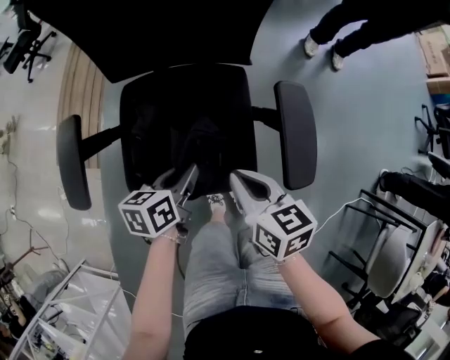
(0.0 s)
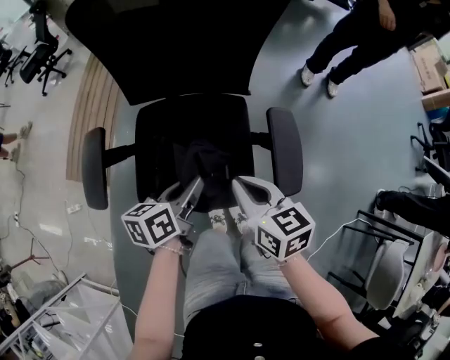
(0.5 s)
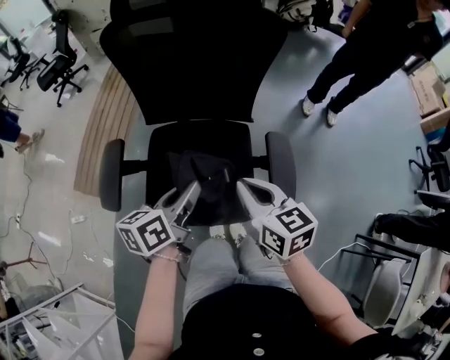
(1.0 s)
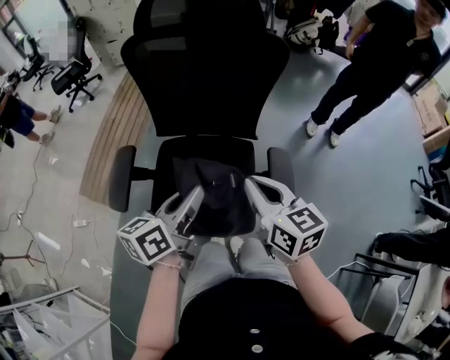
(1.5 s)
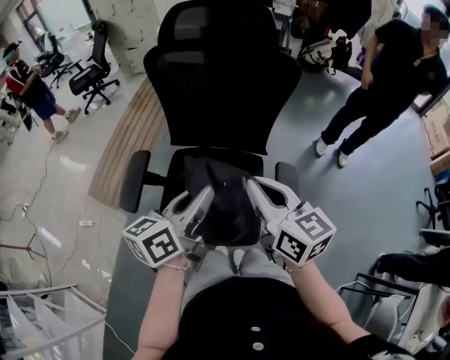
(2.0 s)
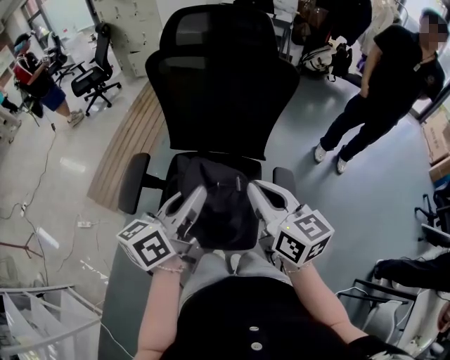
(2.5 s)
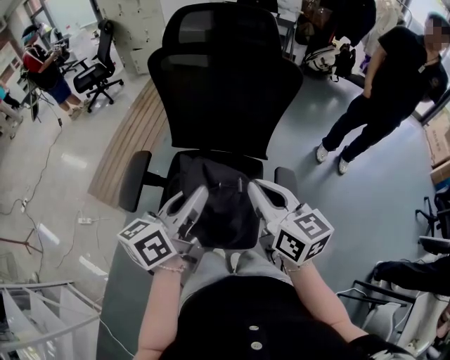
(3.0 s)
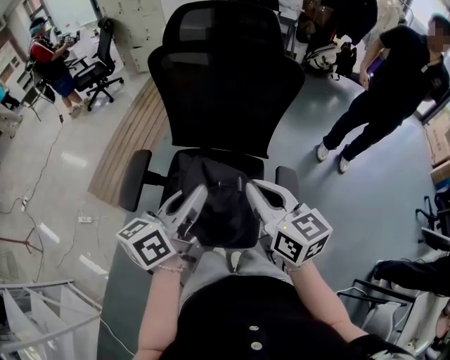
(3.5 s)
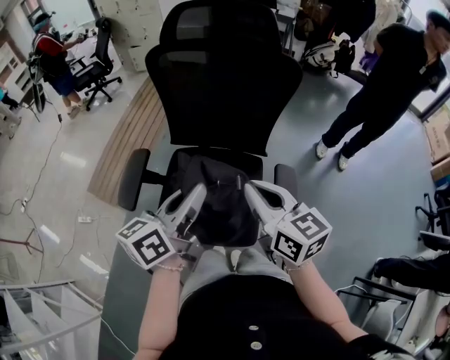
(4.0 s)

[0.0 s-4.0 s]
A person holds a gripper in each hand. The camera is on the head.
0.0 to 2.0 s: Both grippers travel together upward, approximately 30 cm. The right gripper changes its angle by approximately 30 degrees, while the left gripper swivels some 30 degrees.
2.0 to 4.0 s: The grippers move only a little.

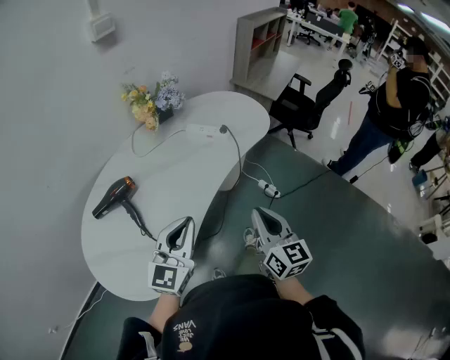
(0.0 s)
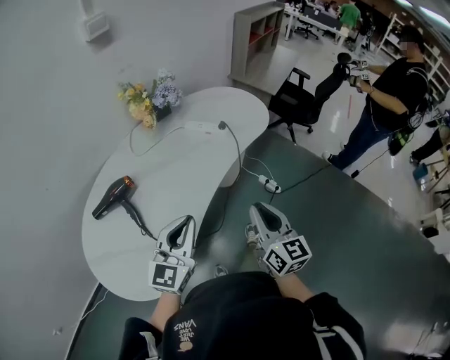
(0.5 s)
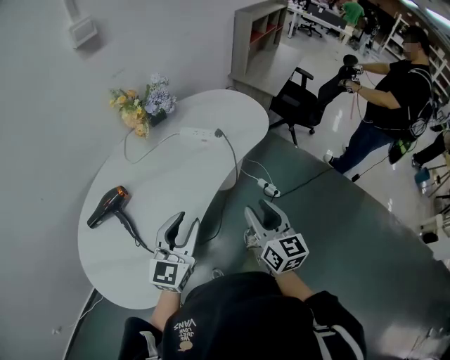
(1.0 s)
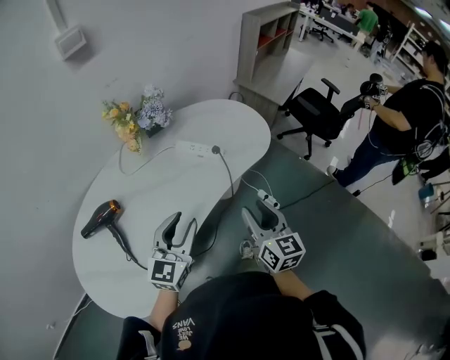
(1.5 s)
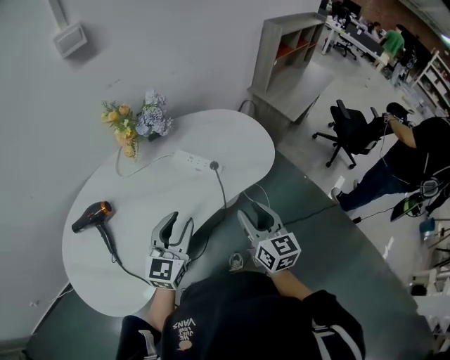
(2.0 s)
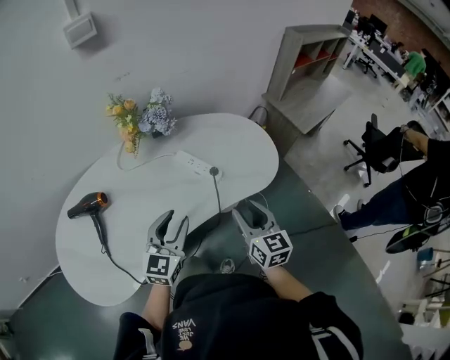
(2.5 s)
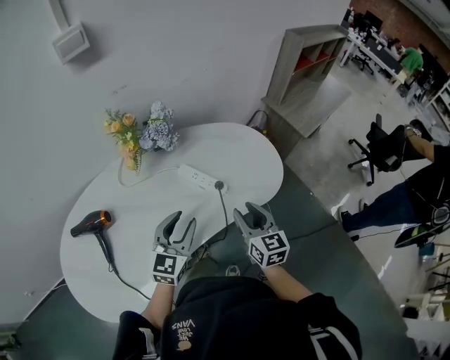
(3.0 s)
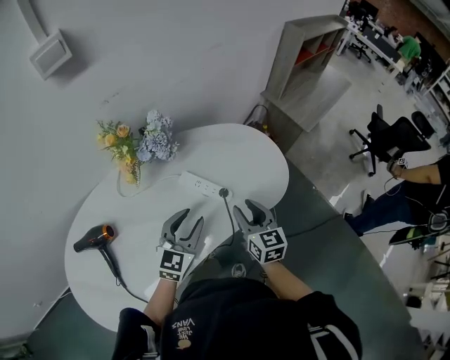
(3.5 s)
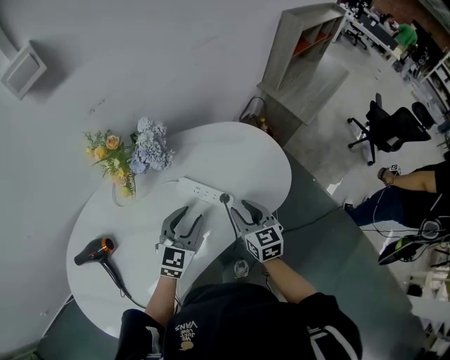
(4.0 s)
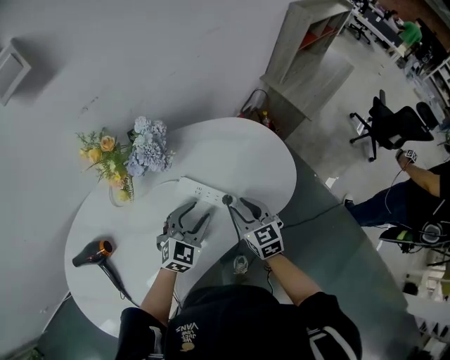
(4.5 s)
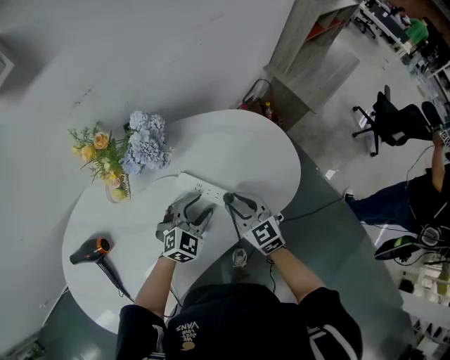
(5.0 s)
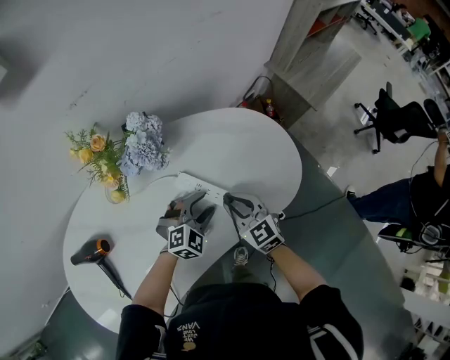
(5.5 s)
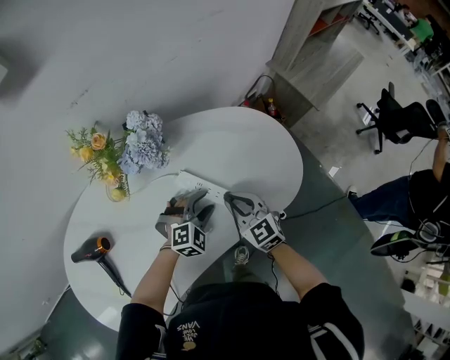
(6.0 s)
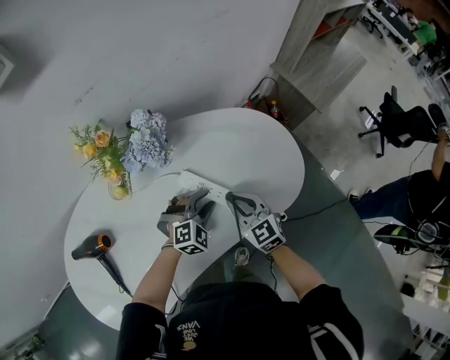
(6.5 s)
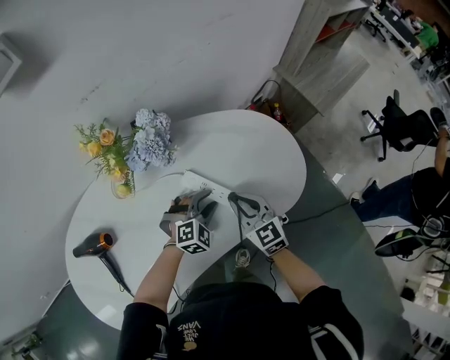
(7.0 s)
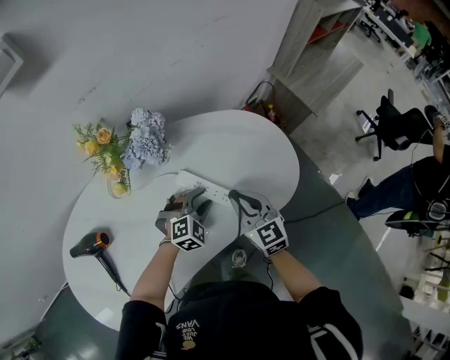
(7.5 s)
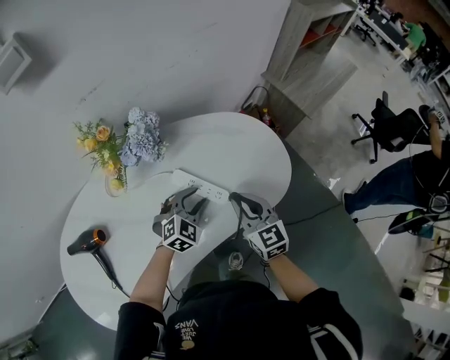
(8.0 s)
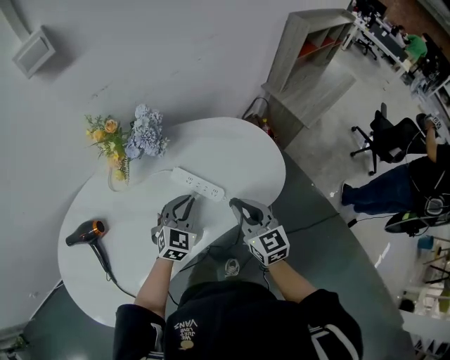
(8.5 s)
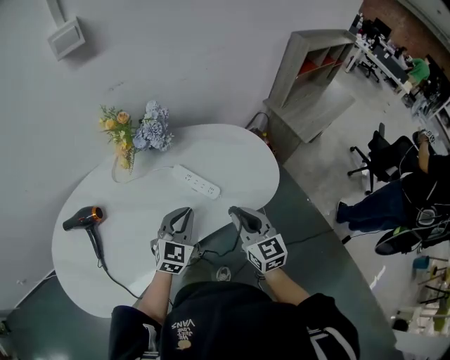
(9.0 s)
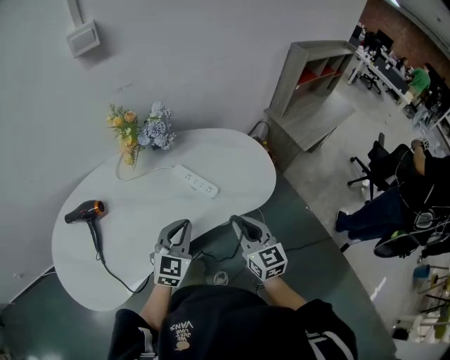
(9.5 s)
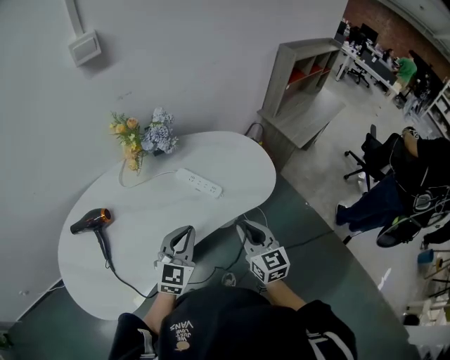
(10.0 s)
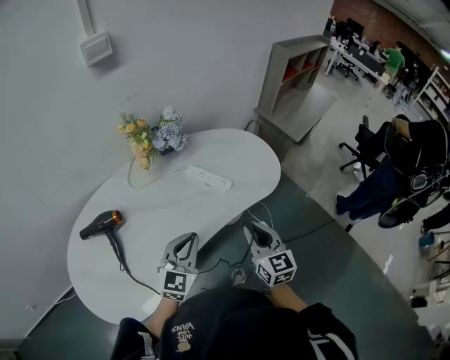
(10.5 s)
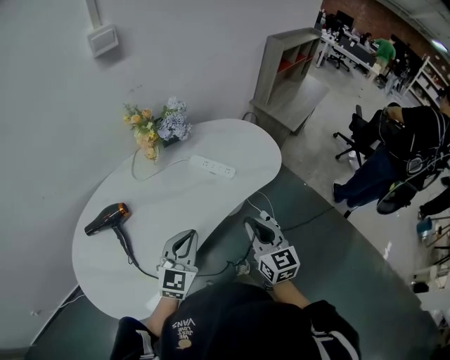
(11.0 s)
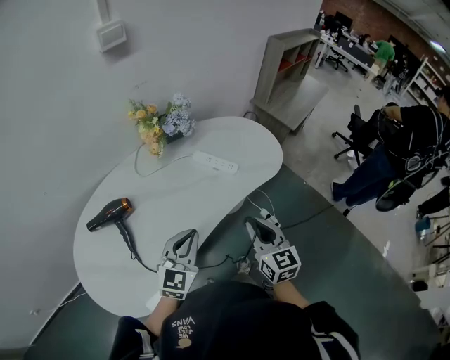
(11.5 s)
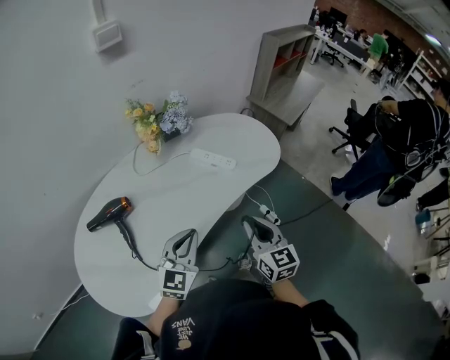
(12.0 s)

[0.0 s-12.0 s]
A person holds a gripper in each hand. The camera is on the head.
0.0 to 2.0 s: The left gripper travels forward and to the right by approximately 25 cm, and opens up. The right gripper travels forward by approximately 25 cm, and opens.
2.0 to 4.0 s: The grippers both shift forward and downward by some 20 cm.
4.0 to 6.0 s: The left gripper is displaced downward by roughly 10 cm, and swivels some 40 degrees. The right gripper ends up roughly 5 cm from where it was, turns by approximately 30 degrees, and closes.
6.0 to 8.0 s: The right gripper heads upward and to the right, covering about 10 cm.
8.0 to 10.0 s: The right gripper travels backward by some 20 cm. Meanwhile the left gripper travels backward and upward by some 25 cm, swivels roughly 40 degrees, and closes.
10.0 to 12.0 s: The two grippers go approximately 15 cm backward and to the left.

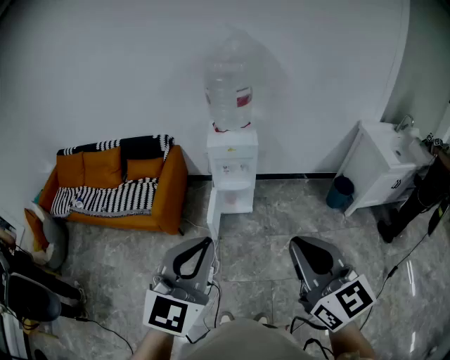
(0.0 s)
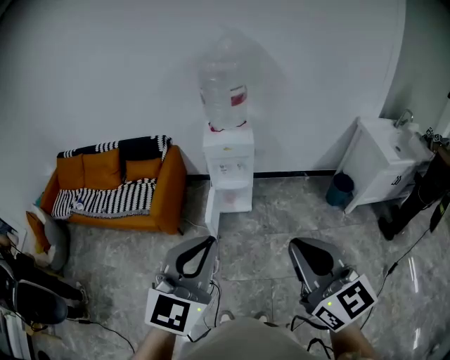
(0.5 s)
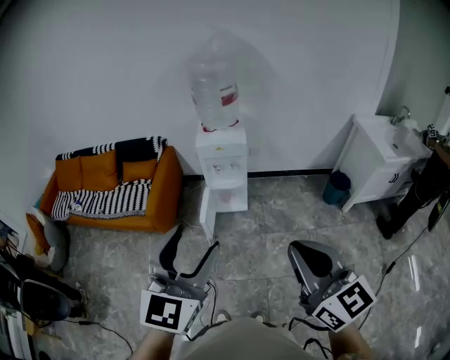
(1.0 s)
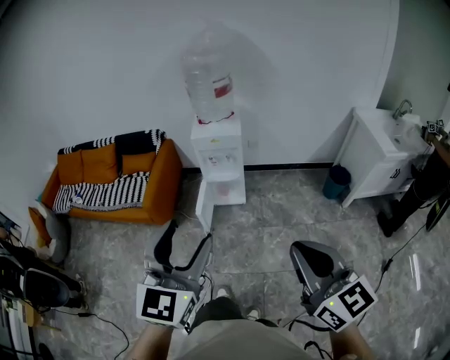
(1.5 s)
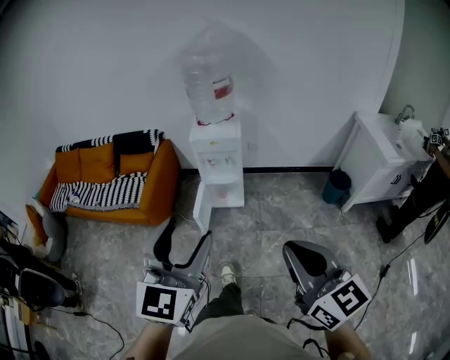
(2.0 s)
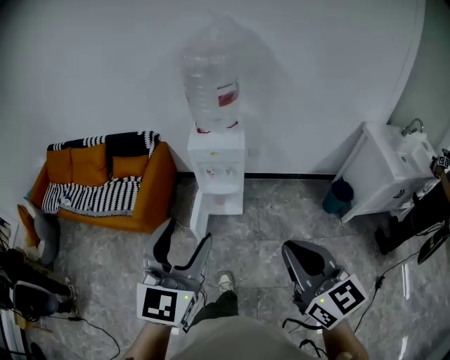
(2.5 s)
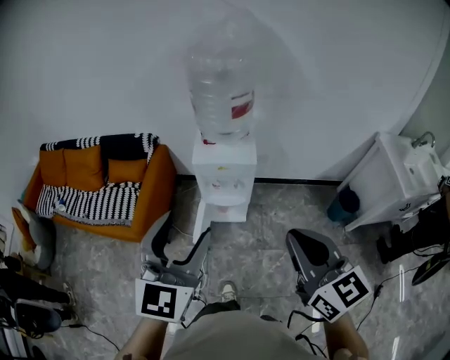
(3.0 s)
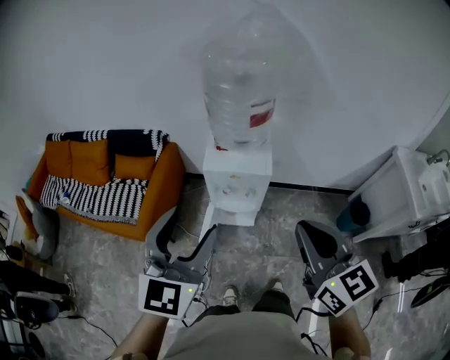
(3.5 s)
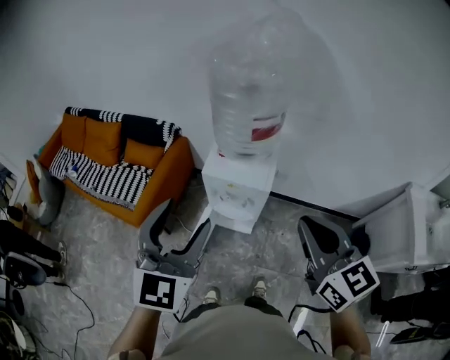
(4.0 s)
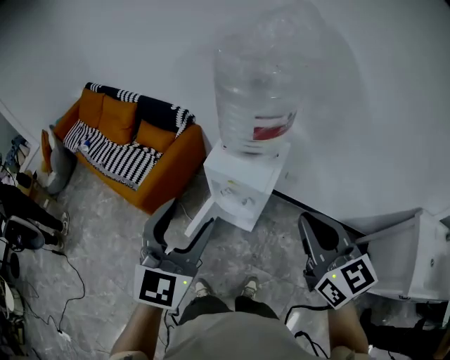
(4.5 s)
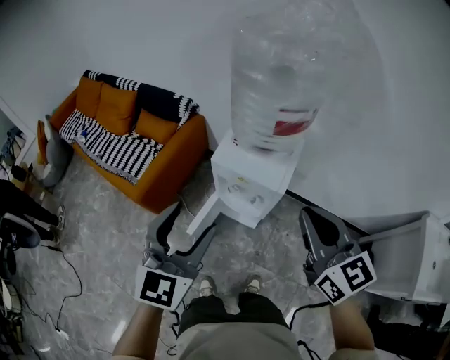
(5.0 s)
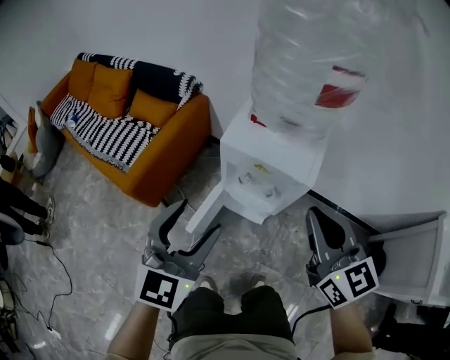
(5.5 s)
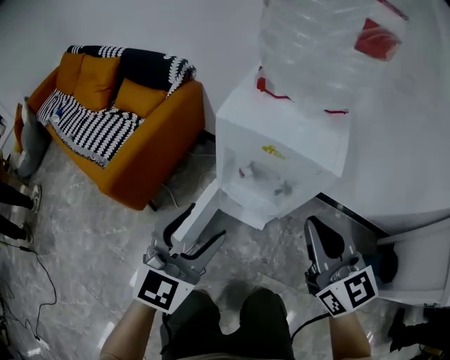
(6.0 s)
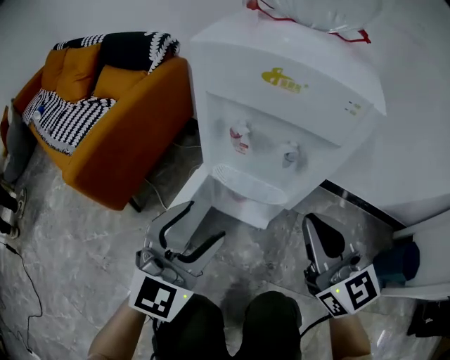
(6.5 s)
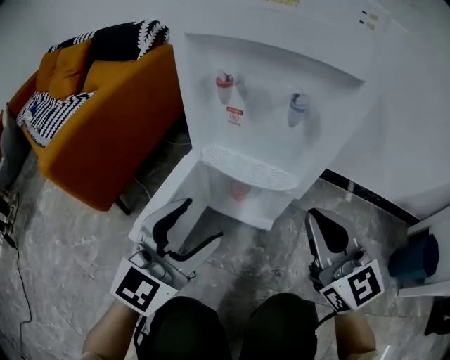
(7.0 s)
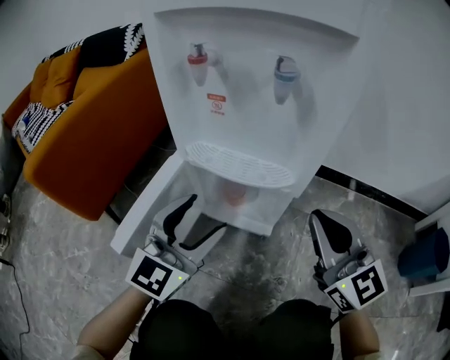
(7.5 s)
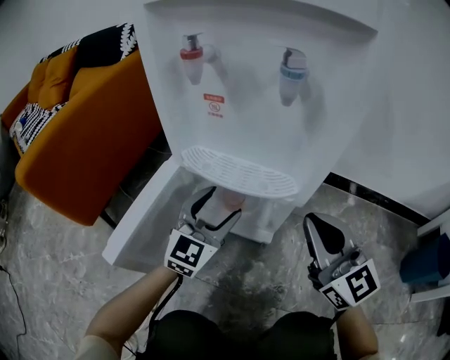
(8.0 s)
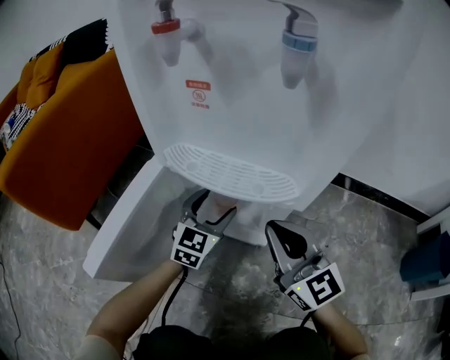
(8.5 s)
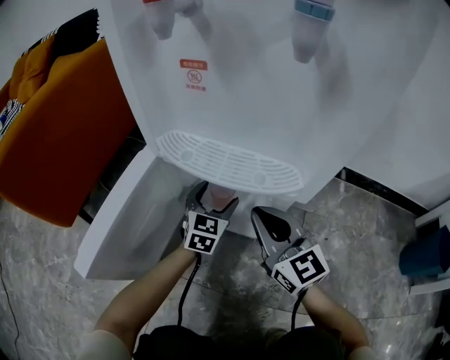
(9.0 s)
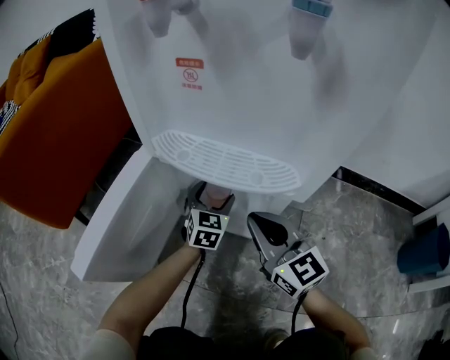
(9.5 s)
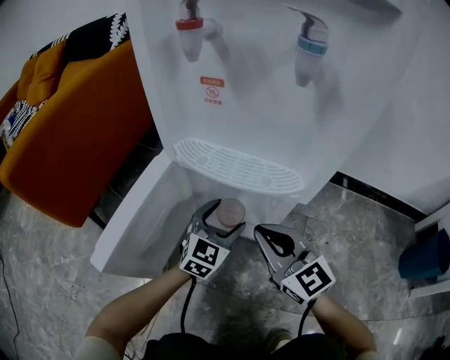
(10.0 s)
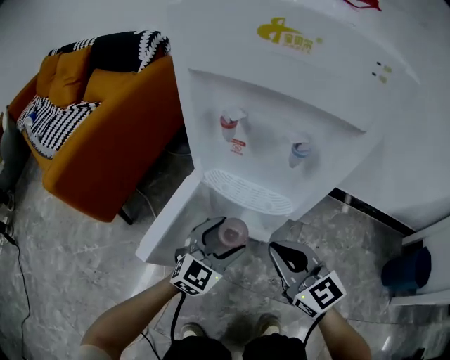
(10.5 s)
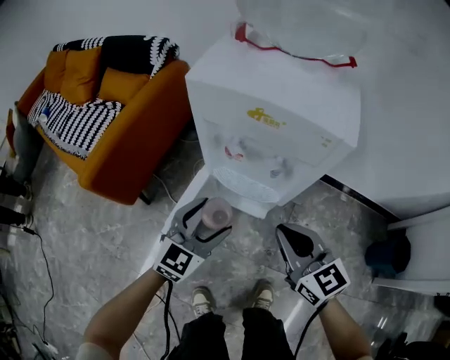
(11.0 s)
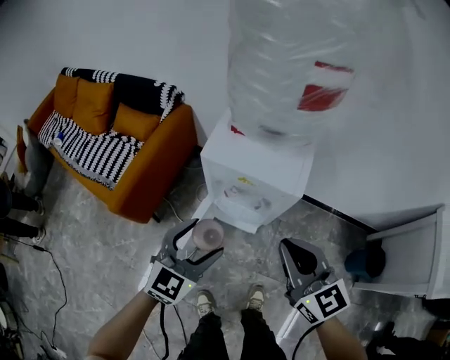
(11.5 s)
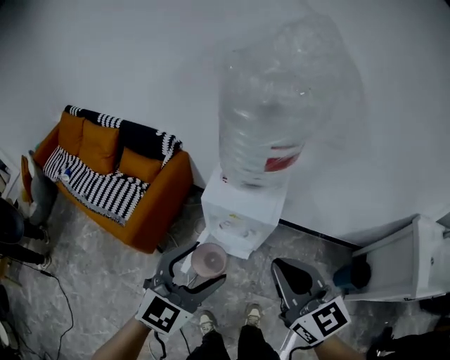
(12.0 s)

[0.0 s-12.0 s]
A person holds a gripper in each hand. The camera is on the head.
0.0 to 2.0 s: The grippers both shift to the right by roughly 10 cm. The left gripper opens.
2.0 to 4.0 s: Both grippers move forward, about 40 cm.
4.0 to 6.0 s: Both grippers move downward, roughly 40 cm.
6.0 to 8.0 s: Both grippers move downward, some 40 cm.
8.0 to 10.0 s: The left gripper shifts about 15 cm downward; the right gripper moves downward and to the left, roughly 15 cm.
10.0 to 12.0 s: The two grippers go about 80 cm upward.
